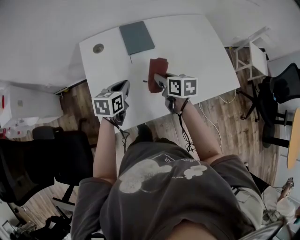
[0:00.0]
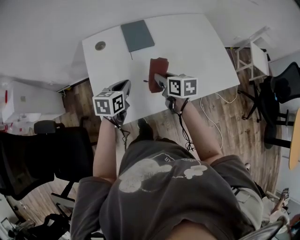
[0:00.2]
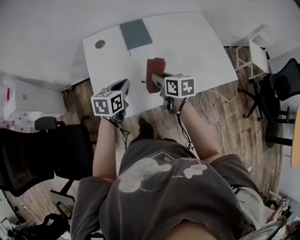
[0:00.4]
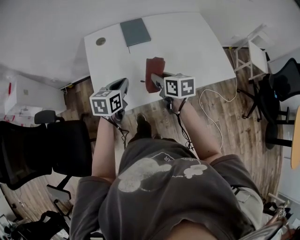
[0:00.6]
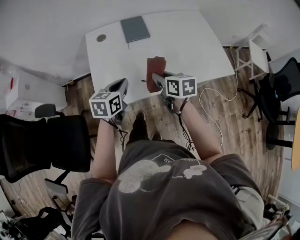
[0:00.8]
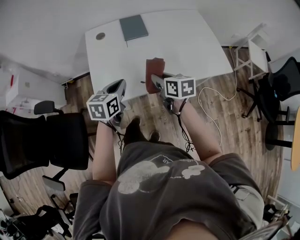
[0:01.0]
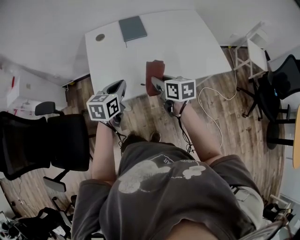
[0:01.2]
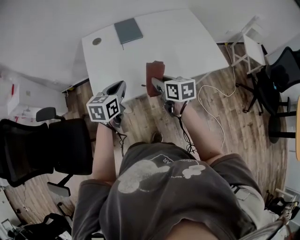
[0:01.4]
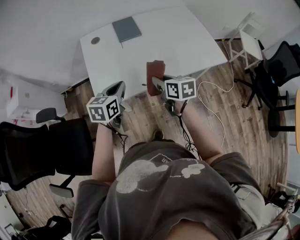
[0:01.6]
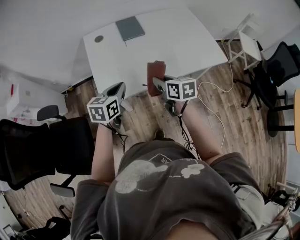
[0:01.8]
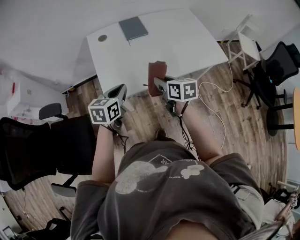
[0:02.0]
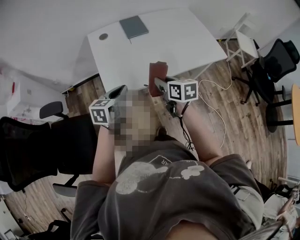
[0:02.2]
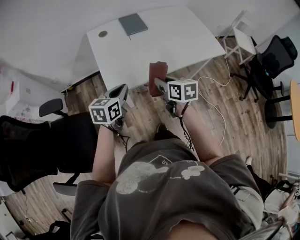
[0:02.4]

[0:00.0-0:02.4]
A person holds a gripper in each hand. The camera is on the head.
0:00.0 to 0:01.2: The grippers both shift backward by roughly 20 cm.
0:01.2 to 0:02.4: The grippers both shift backward and to the left by roughly 15 cm.

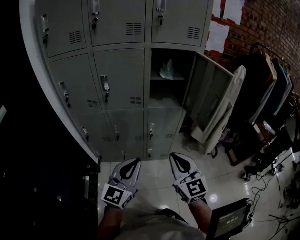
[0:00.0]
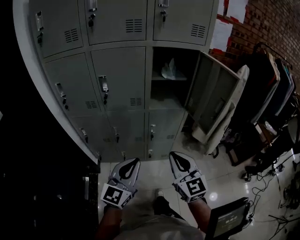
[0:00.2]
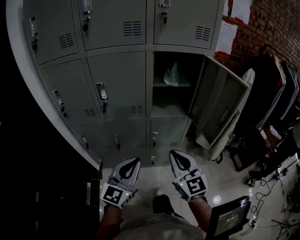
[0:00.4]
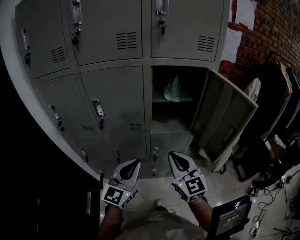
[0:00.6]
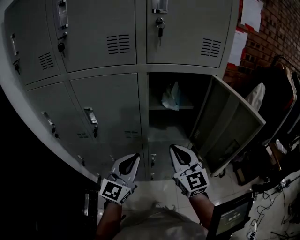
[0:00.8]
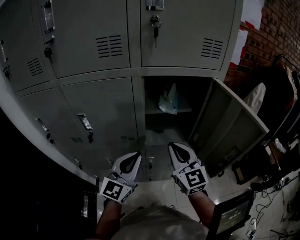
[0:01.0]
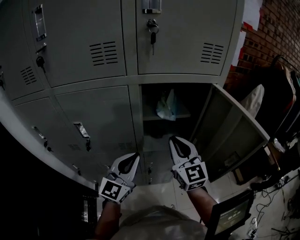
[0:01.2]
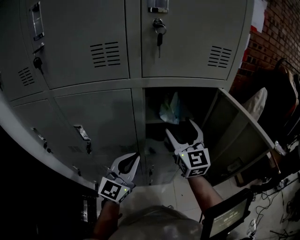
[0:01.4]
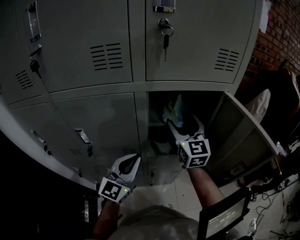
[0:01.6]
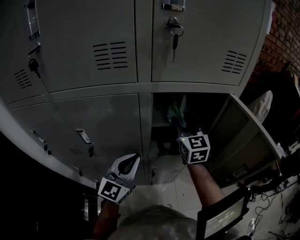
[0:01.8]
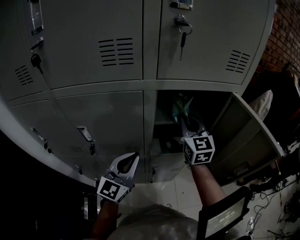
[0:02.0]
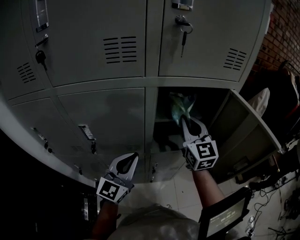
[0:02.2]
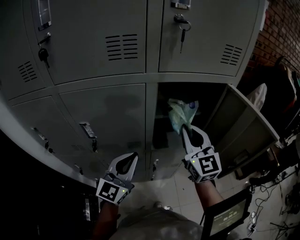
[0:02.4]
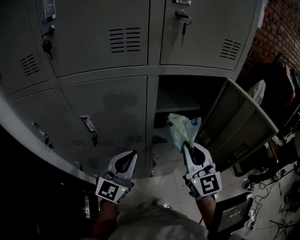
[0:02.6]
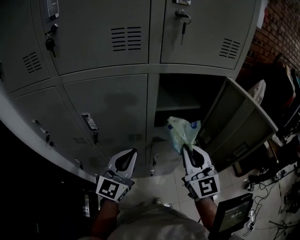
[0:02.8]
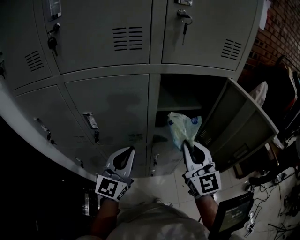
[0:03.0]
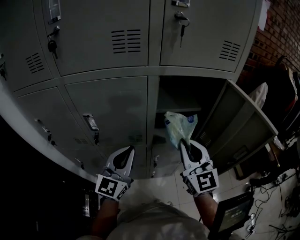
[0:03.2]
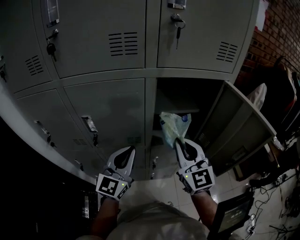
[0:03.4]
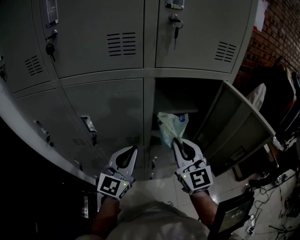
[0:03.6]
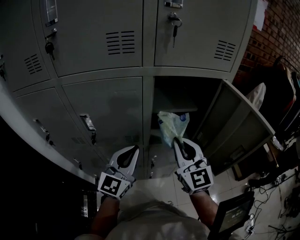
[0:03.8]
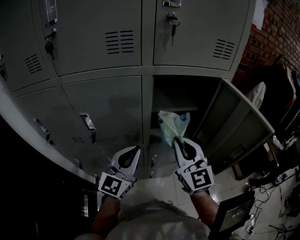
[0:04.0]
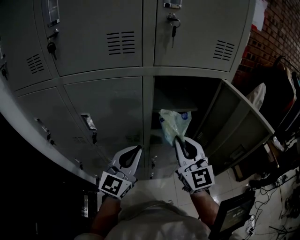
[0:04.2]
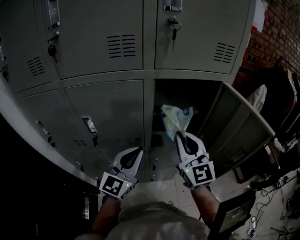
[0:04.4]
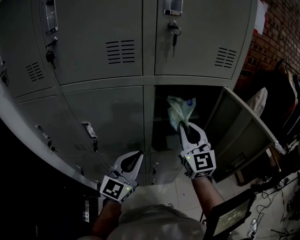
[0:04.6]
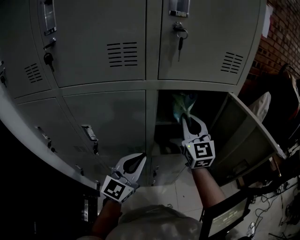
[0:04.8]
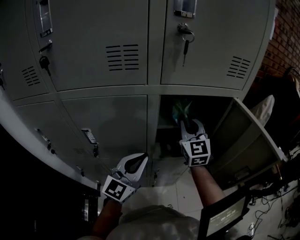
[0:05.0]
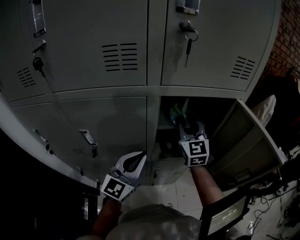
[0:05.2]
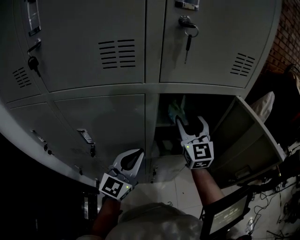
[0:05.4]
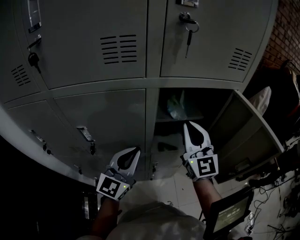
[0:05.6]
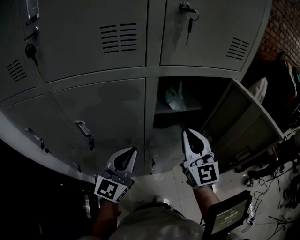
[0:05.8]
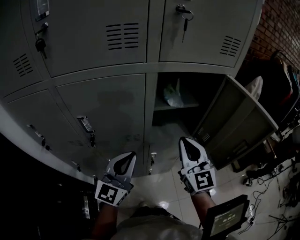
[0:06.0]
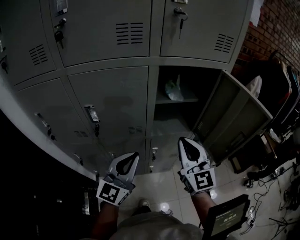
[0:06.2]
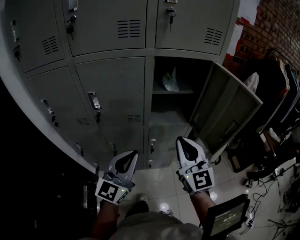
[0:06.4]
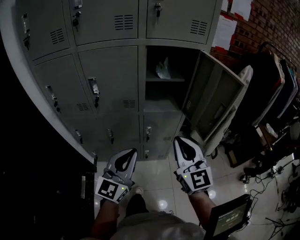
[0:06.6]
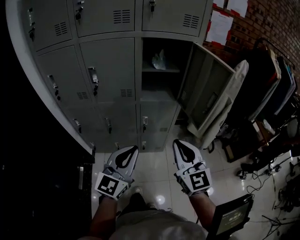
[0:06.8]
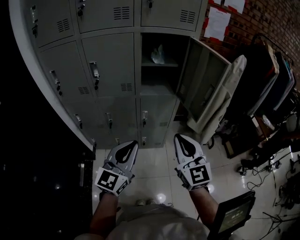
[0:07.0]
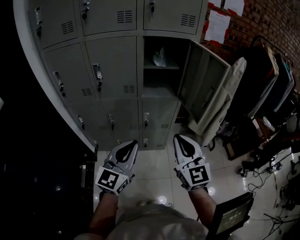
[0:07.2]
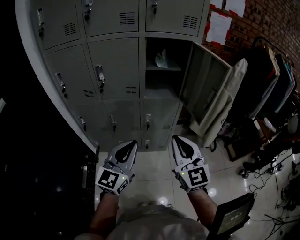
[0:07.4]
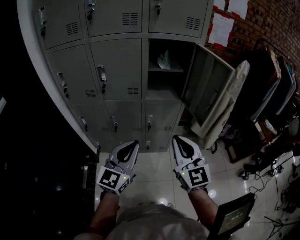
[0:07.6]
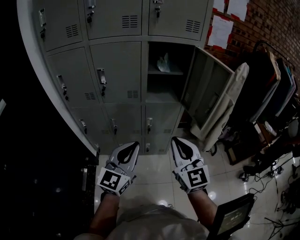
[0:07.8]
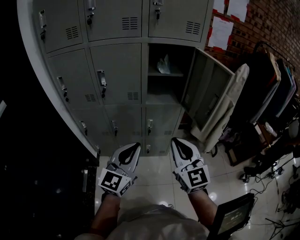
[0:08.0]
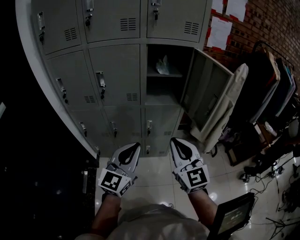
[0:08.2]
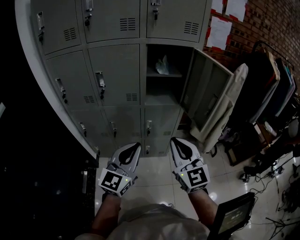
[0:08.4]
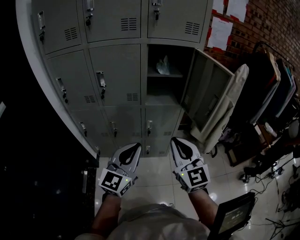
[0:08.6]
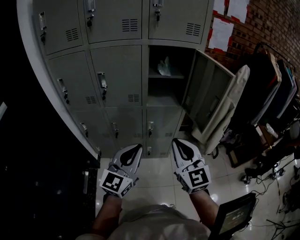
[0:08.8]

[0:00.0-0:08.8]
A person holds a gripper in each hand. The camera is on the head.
0:00.0 to 0:01.4: The grippers both shift forward by roughly 40 cm. The right gripper opens its fingers.
0:01.4 to 0:03.0: The left gripper heads to the left, covering roughly 5 cm, while the right gripper travels backward by about 10 cm, and closes its fingers.
0:03.0 to 0:04.4: The grippers move only a little.
0:04.4 to 0:05.8: The right gripper reaches some 15 cm forward, then returns, and opens and closes again.
0:05.8 to 0:07.4: Both grippers move backward, about 35 cm.
0:07.4 to 0:08.8: The grippers move only a little.

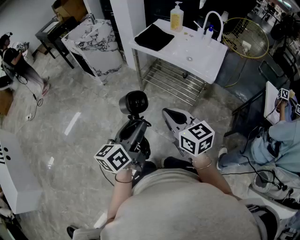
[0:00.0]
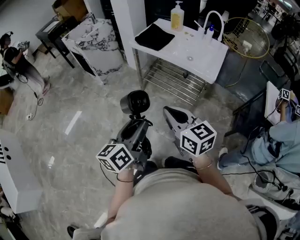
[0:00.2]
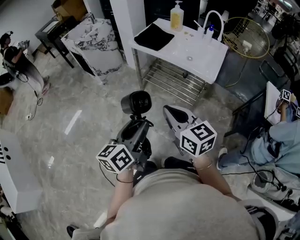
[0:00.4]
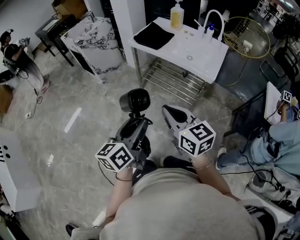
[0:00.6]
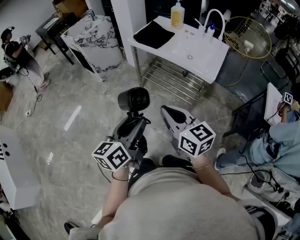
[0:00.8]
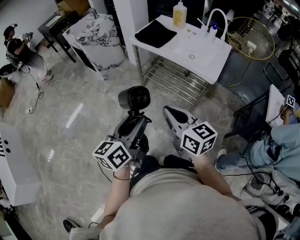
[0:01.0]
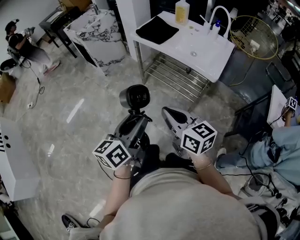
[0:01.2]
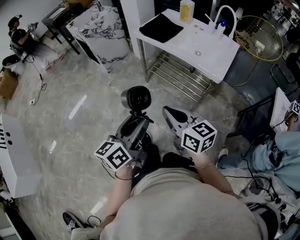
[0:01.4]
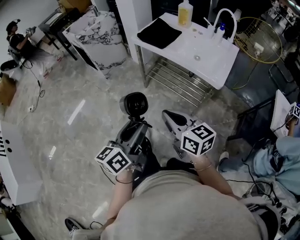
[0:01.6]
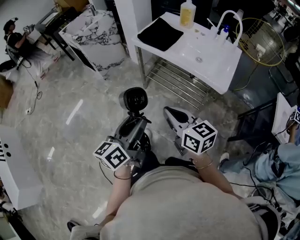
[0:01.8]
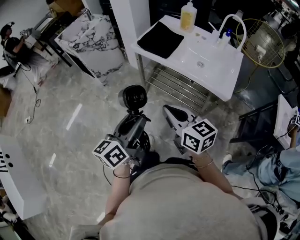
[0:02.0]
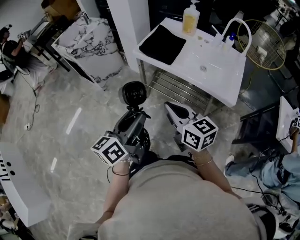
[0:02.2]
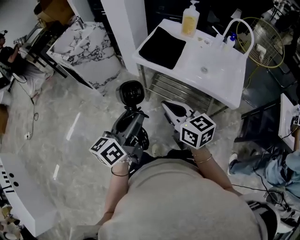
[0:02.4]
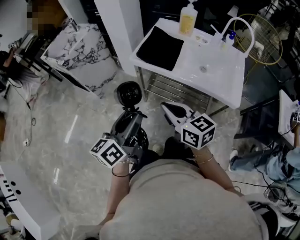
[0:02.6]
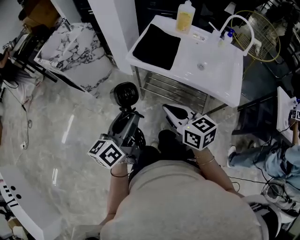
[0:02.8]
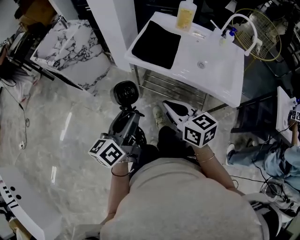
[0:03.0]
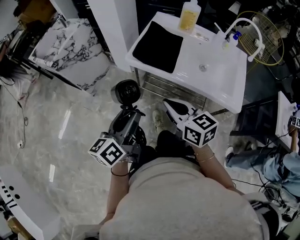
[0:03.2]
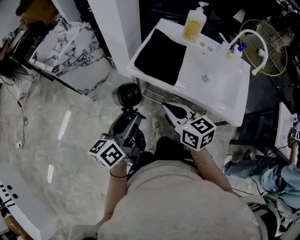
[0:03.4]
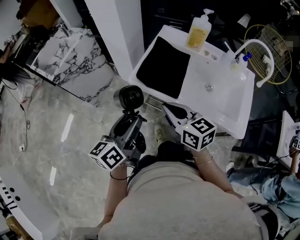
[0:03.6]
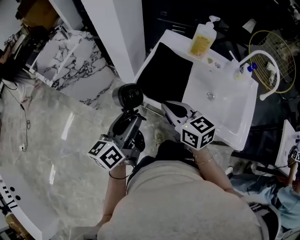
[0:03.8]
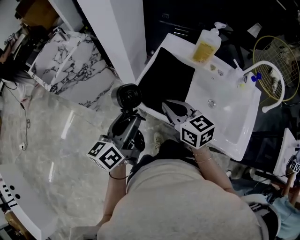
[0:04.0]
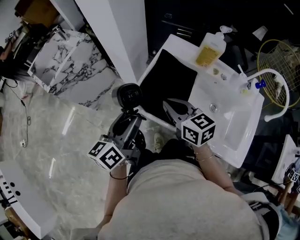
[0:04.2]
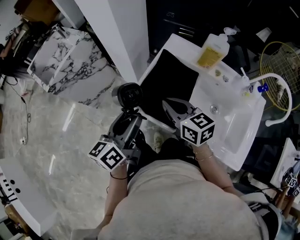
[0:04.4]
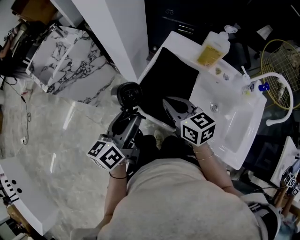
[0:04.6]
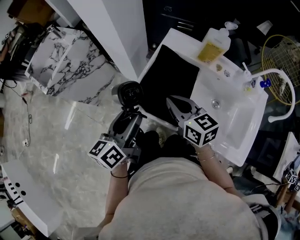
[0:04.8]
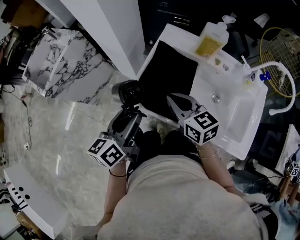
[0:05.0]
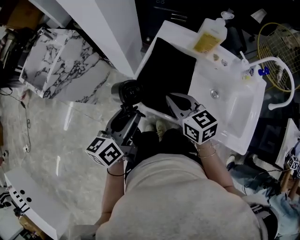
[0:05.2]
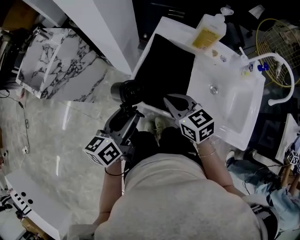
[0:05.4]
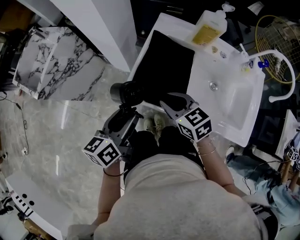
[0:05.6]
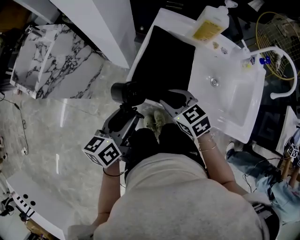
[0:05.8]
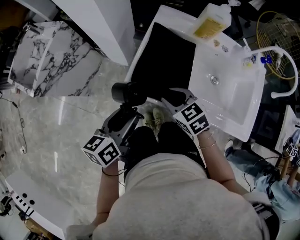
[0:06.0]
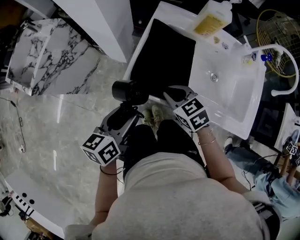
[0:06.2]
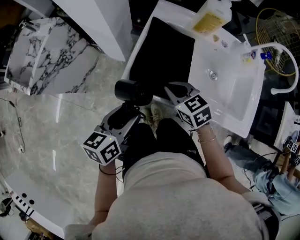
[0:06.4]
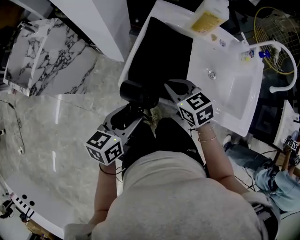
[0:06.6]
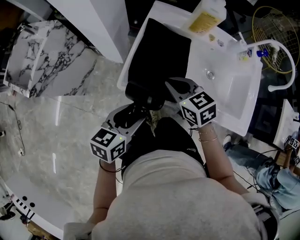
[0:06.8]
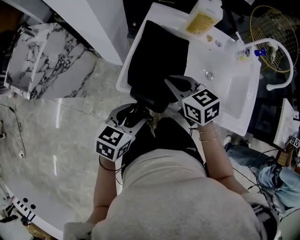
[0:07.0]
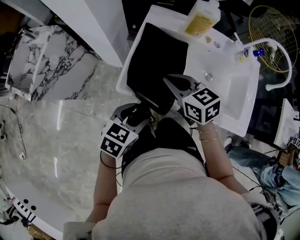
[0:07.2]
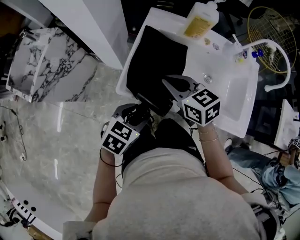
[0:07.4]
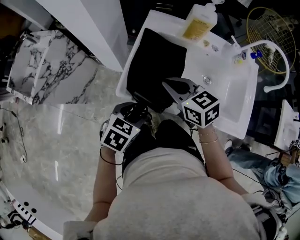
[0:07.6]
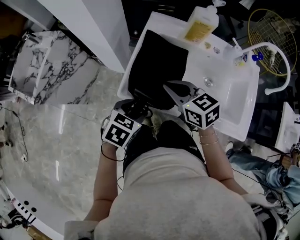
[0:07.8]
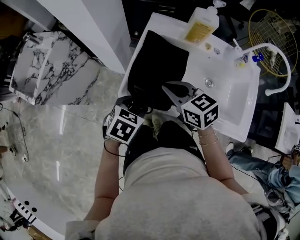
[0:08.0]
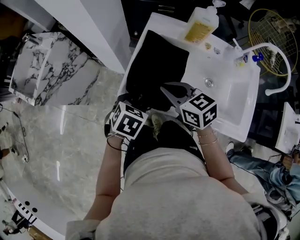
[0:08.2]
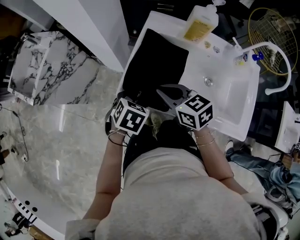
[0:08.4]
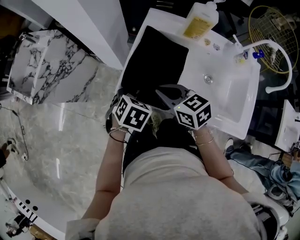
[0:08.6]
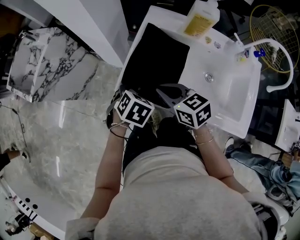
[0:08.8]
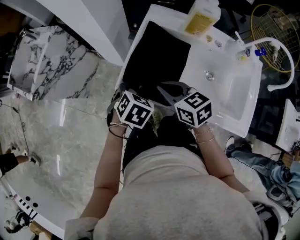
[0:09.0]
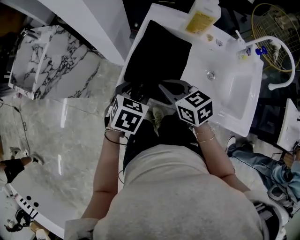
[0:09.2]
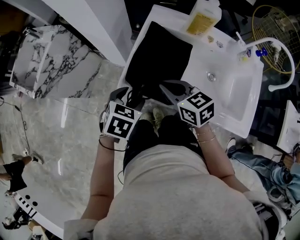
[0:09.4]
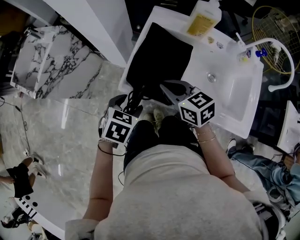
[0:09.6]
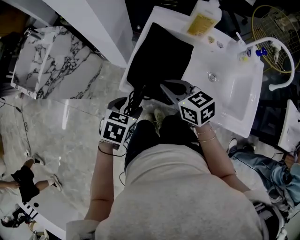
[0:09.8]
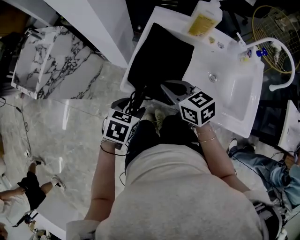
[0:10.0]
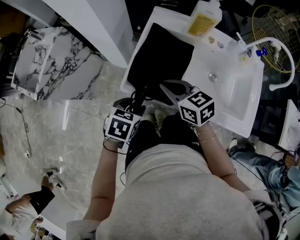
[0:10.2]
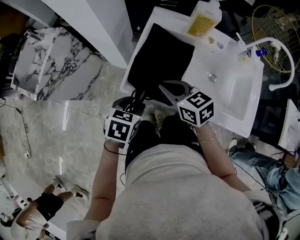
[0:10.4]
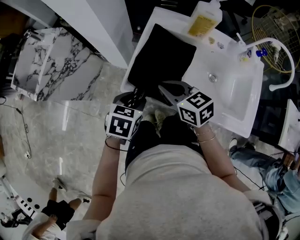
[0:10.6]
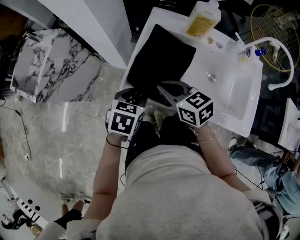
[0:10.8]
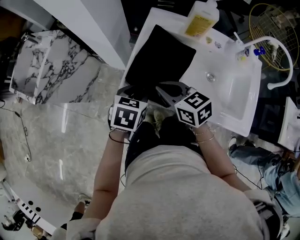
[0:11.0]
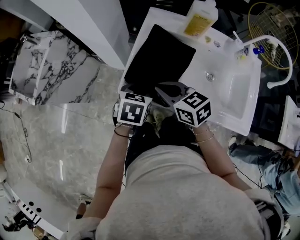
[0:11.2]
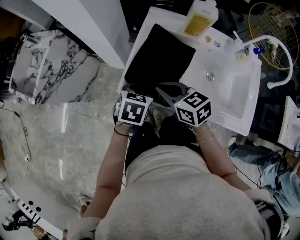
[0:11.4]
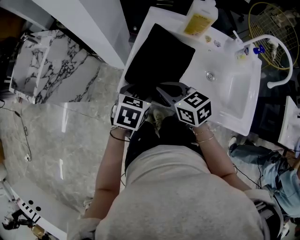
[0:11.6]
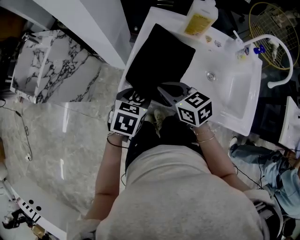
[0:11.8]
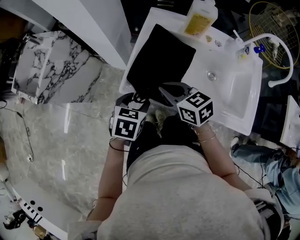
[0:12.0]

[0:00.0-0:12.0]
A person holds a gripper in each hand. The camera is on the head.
0:00.0 to 0:01.6: The two grippers go approximately 5 cm forward.
0:01.6 to 0:03.0: Both grippers move forward, some 30 cm.
0:03.0 to 0:04.4: Both grippers move forward, about 30 cm.
0:04.4 to 0:06.0: The two grippers go some 10 cm downward. The right gripper changes its angle by some 30 degrees, and opens, while the left gripper rotates approximately 20 degrees.
0:06.0 to 0:07.6: The left gripper goes roughly 5 cm to the right, and swivels approximately 50 degrees; the right gripper moves upward, roughly 10 cm, and closes up.
0:07.6 to 0:09.0: The left gripper travels forward by approximately 5 cm.
0:09.0 to 0:10.4: The left gripper changes place by some 5 cm.

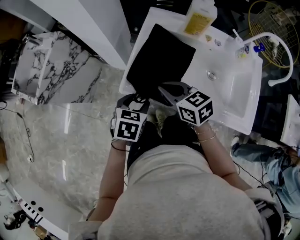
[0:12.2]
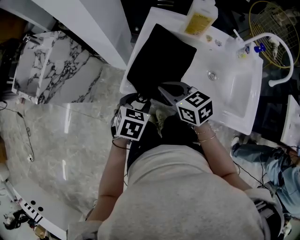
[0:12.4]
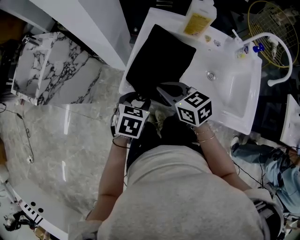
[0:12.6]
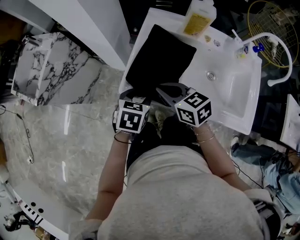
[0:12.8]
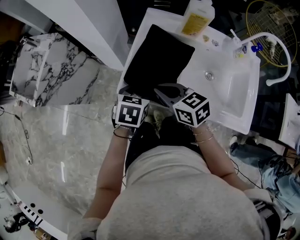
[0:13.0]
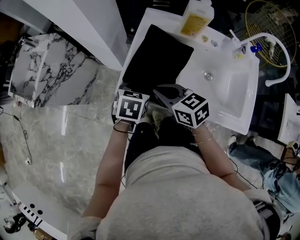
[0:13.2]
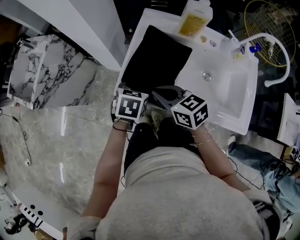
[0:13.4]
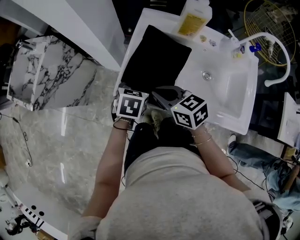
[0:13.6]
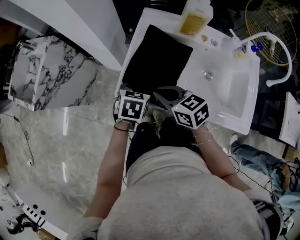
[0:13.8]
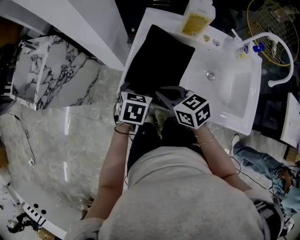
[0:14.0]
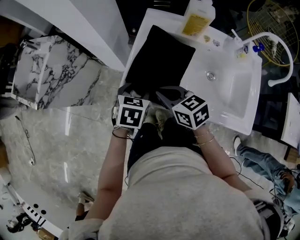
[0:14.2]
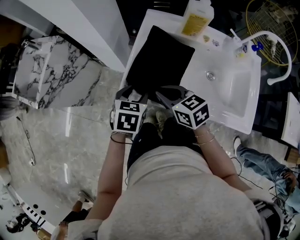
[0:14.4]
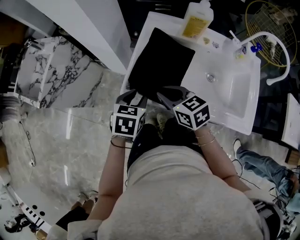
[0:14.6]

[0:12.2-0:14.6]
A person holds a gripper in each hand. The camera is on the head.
0:12.2 to 0:13.4: The left gripper goes roughly 5 cm forward.
0:13.4 to 0:14.6: The left gripper ends up some 5 cm from where it was.
